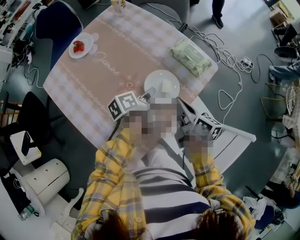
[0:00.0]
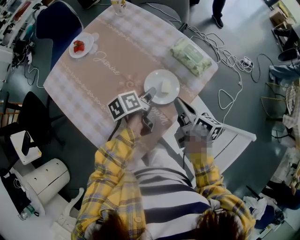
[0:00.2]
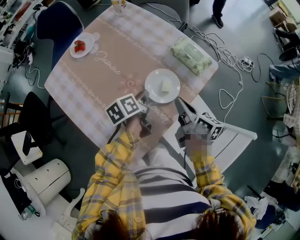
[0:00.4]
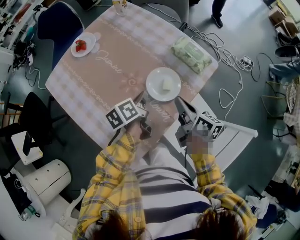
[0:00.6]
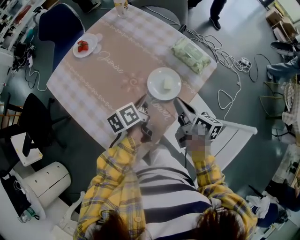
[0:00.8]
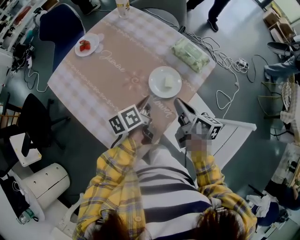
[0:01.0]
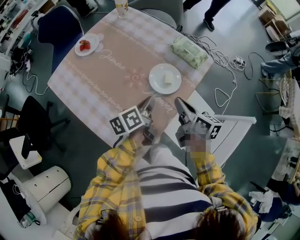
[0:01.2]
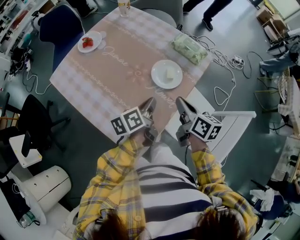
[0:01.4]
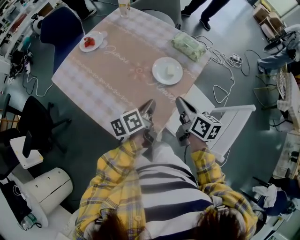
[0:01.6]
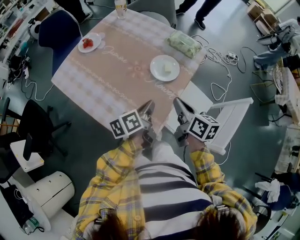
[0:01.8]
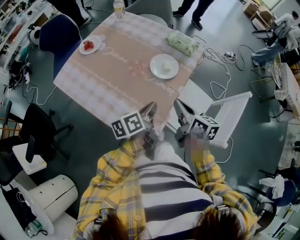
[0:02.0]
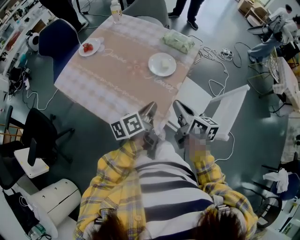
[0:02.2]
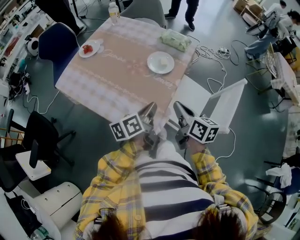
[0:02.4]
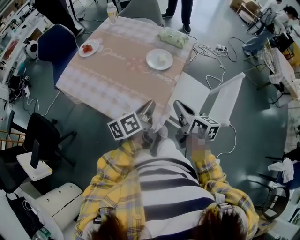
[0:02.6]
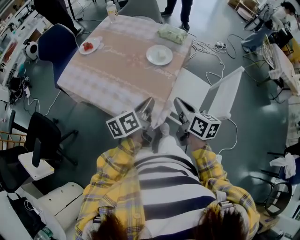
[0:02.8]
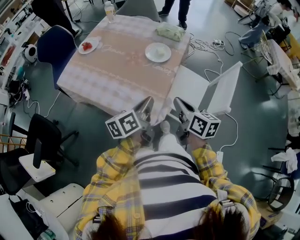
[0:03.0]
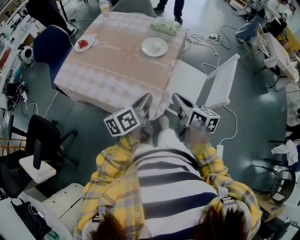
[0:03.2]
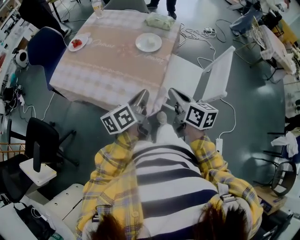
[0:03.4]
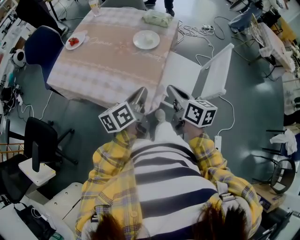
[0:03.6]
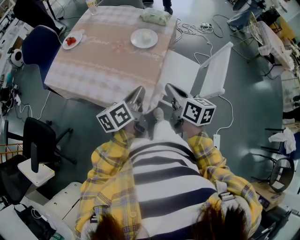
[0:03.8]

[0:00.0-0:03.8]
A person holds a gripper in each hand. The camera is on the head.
0:00.0 to 0:01.2: The right gripper shifts by about 5 cm.
0:01.2 to 0:02.6: The right gripper ends up about 20 cm from where it was.

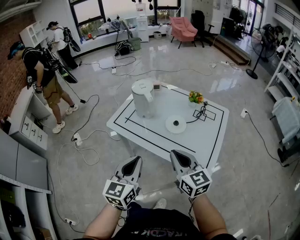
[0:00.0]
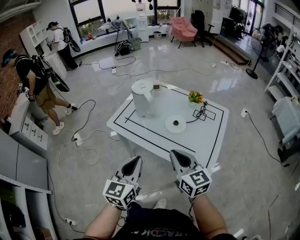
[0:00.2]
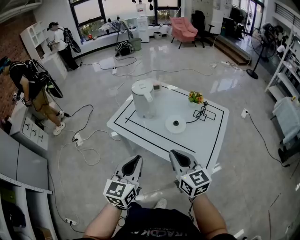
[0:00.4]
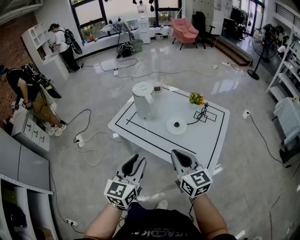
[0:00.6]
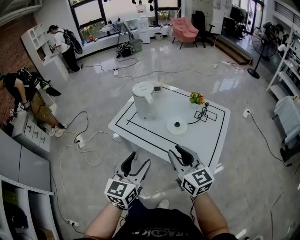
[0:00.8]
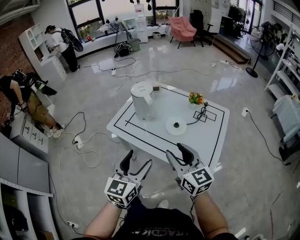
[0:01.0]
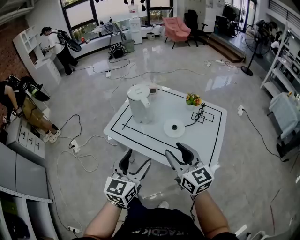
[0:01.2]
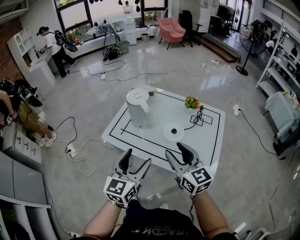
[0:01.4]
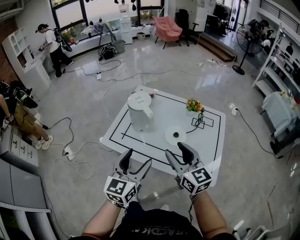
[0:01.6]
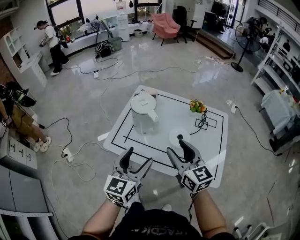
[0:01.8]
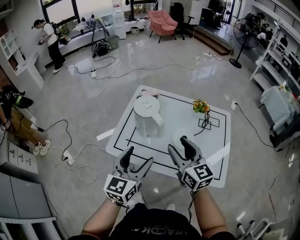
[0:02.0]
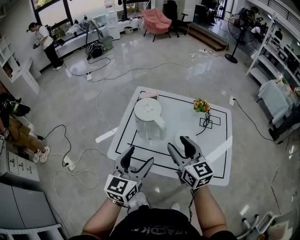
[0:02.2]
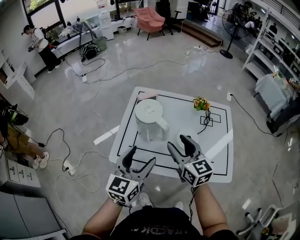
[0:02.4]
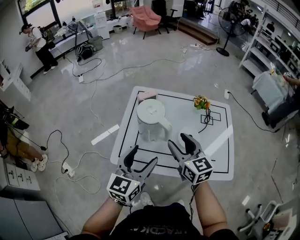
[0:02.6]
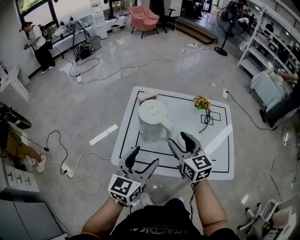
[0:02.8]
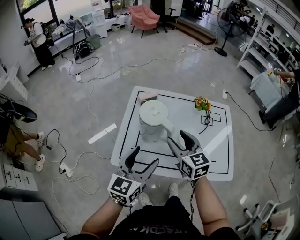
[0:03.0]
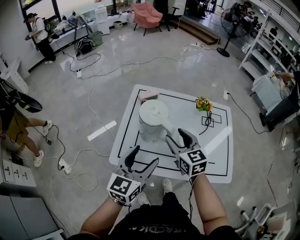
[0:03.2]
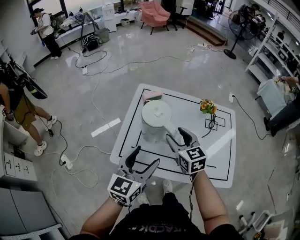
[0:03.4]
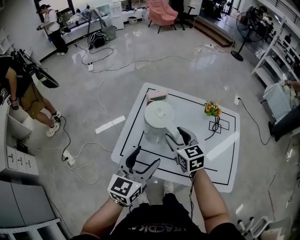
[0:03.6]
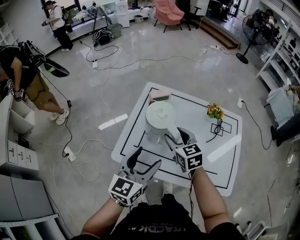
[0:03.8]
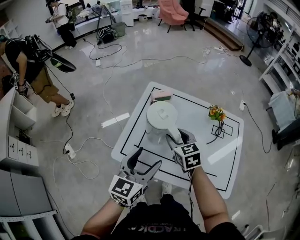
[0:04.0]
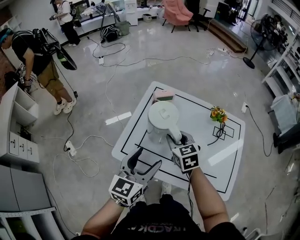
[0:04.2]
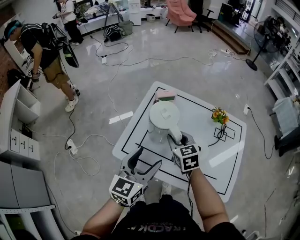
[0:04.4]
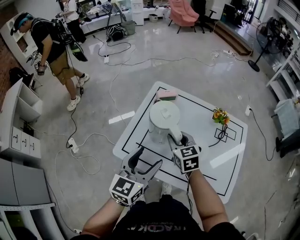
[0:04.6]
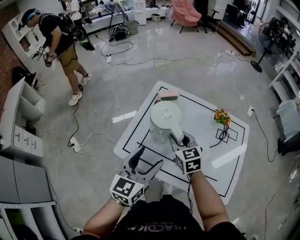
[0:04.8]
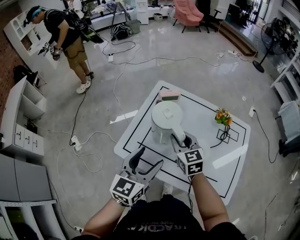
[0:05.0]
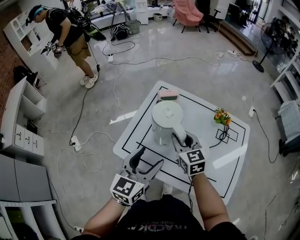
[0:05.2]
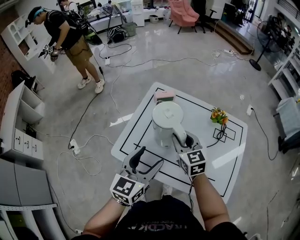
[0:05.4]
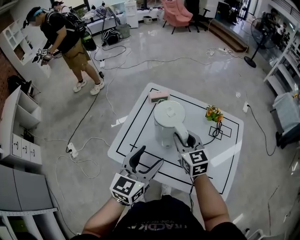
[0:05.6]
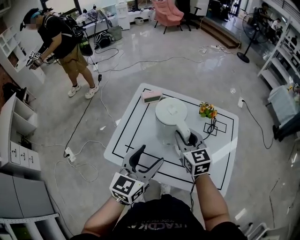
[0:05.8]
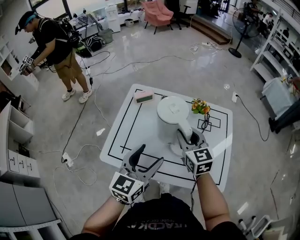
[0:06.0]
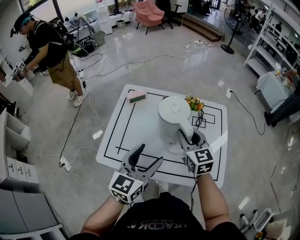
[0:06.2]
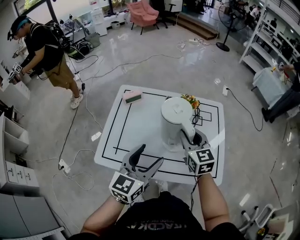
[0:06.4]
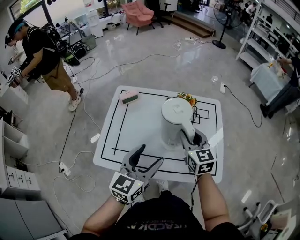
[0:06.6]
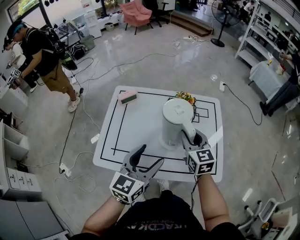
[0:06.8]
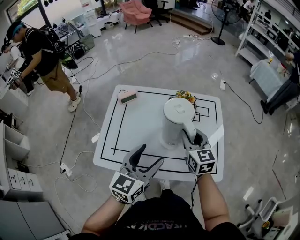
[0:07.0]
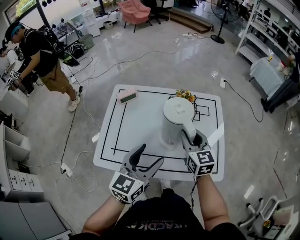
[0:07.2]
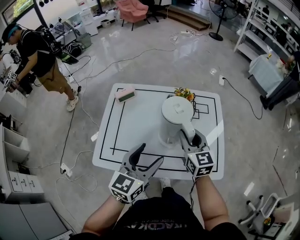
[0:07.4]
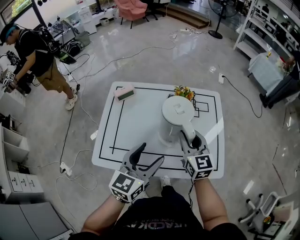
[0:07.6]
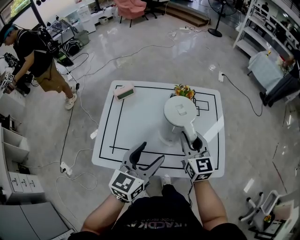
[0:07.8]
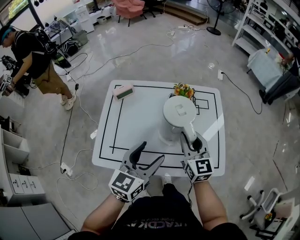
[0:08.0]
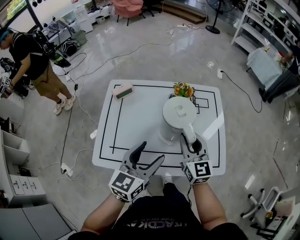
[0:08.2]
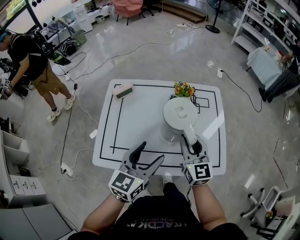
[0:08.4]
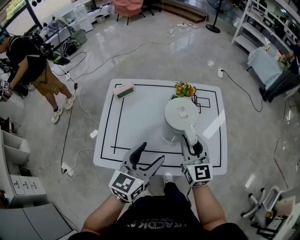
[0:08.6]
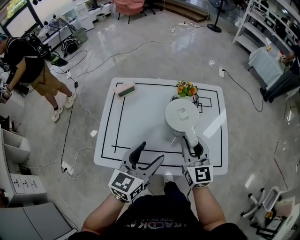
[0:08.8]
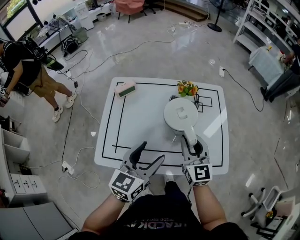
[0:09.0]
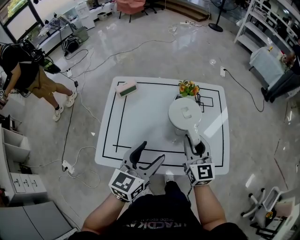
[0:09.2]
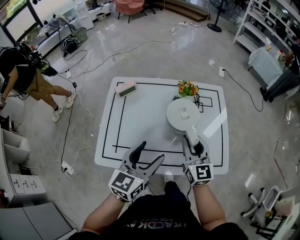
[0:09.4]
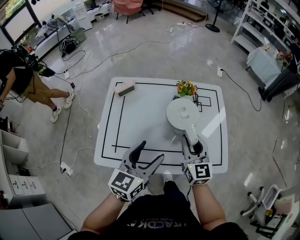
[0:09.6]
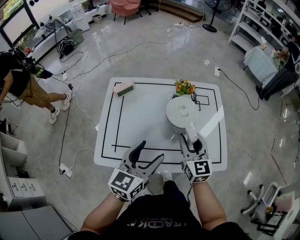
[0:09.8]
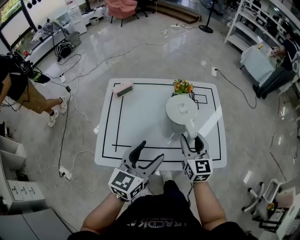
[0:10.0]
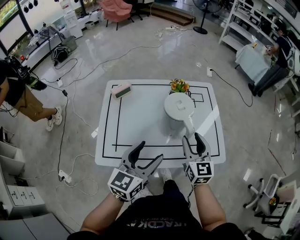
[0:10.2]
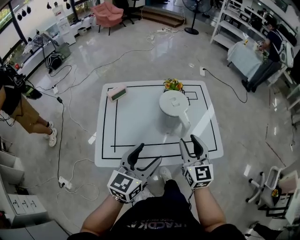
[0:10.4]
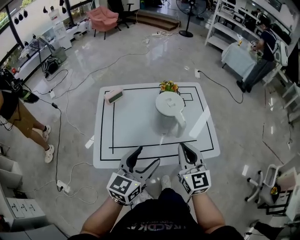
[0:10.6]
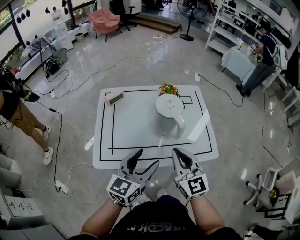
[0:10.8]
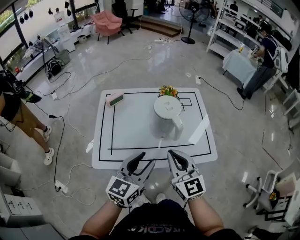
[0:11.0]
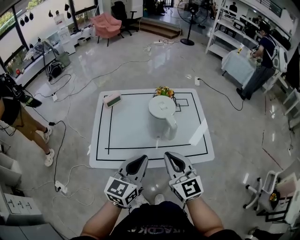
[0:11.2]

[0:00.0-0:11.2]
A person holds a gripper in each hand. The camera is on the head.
0:00.0 to 0:01.6: The two grippers go roughly 10 cm forward. The left gripper opens; the right gripper opens up.
0:01.6 to 0:03.2: The two grippers go about 20 cm forward and to the left.
0:03.2 to 0:04.8: The right gripper shifts approximately 5 cm downward, and closes its fingers.
0:04.8 to 0:06.4: The right gripper shifts approximately 20 cm to the right, and turns by about 20 degrees. The left gripper travels to the right by about 10 cm.
0:06.4 to 0:09.6: The grippers stay close to where they were, moving slightly.
0:09.6 to 0:11.2: The left gripper heads backward, covering some 10 cm, and closes up. The right gripper travels backward and upward by roughly 20 cm, and closes up.

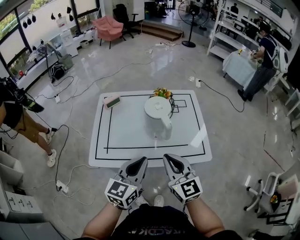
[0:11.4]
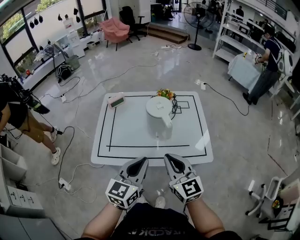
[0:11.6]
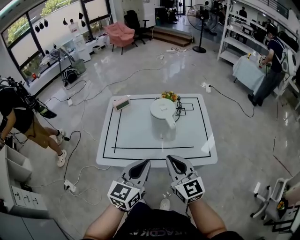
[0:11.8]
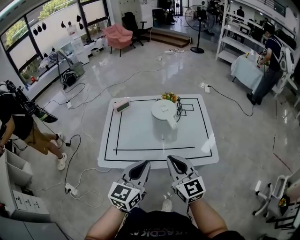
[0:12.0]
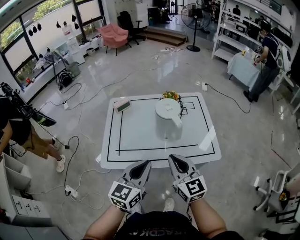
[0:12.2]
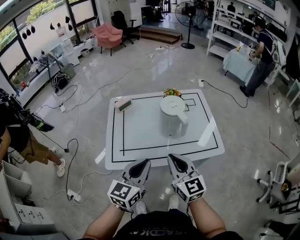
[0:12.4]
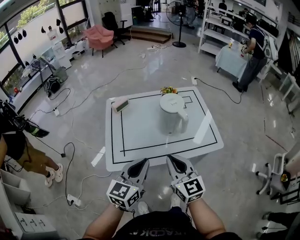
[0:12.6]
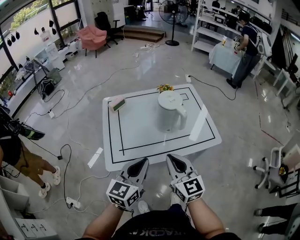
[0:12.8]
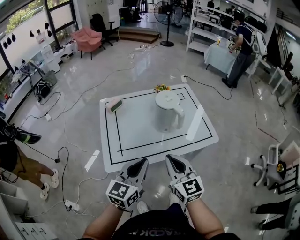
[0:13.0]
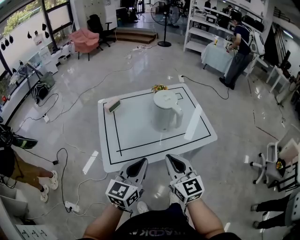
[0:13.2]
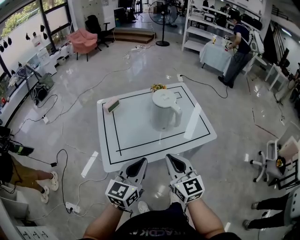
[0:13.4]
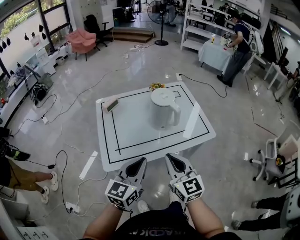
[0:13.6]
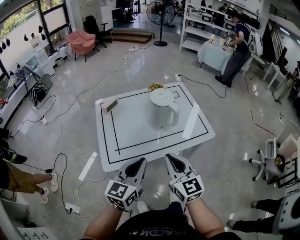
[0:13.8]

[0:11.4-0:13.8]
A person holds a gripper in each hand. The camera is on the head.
0:11.4 to 0:12.6: The grippers both shift to the left by approximately 10 cm.
0:12.6 to 0:13.8: The grippers move only a little.

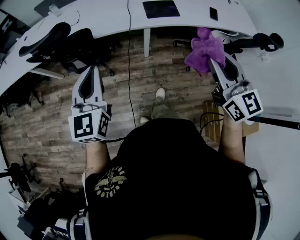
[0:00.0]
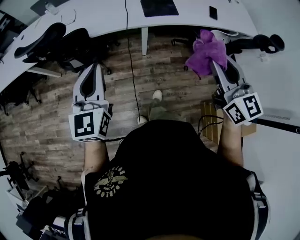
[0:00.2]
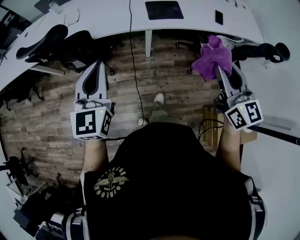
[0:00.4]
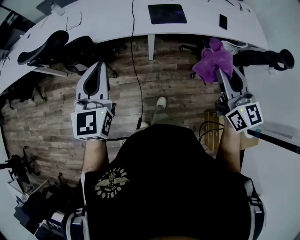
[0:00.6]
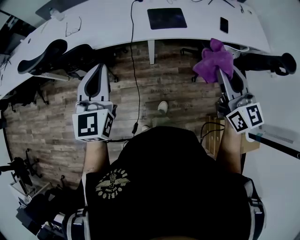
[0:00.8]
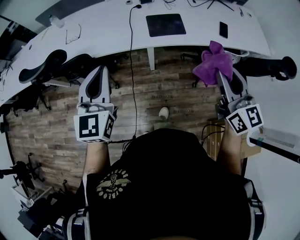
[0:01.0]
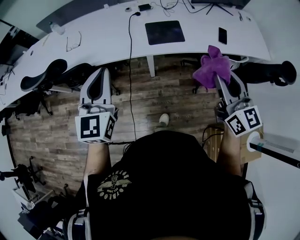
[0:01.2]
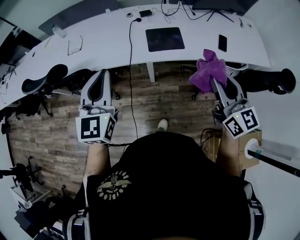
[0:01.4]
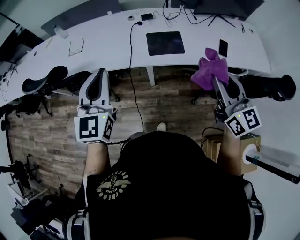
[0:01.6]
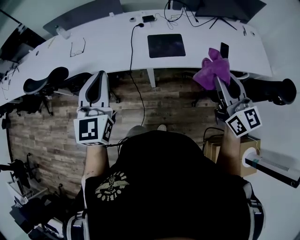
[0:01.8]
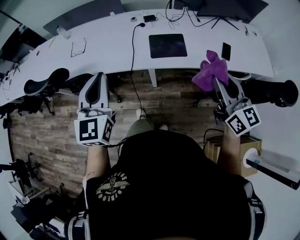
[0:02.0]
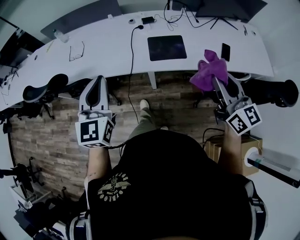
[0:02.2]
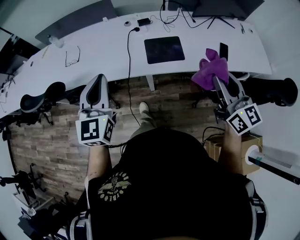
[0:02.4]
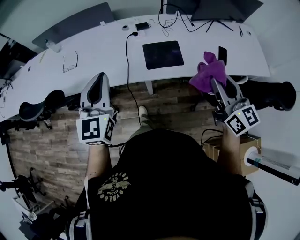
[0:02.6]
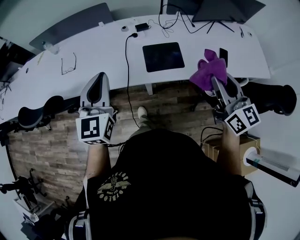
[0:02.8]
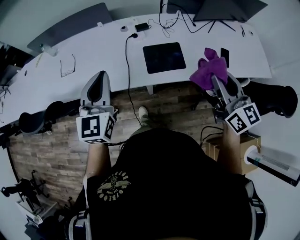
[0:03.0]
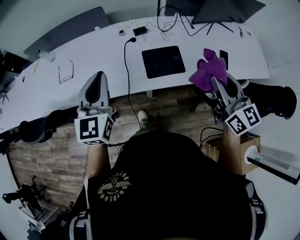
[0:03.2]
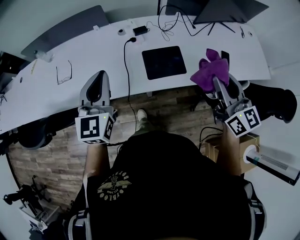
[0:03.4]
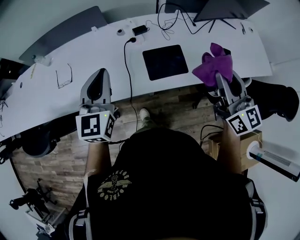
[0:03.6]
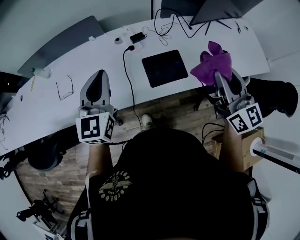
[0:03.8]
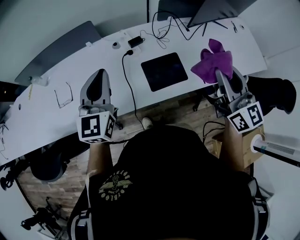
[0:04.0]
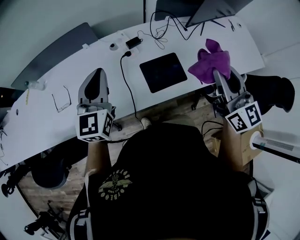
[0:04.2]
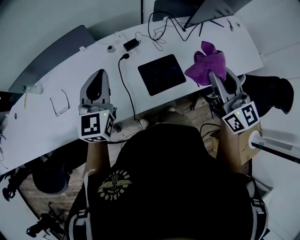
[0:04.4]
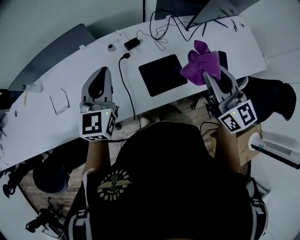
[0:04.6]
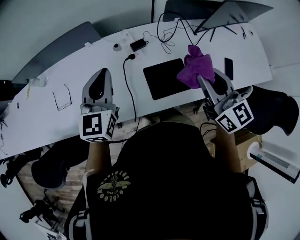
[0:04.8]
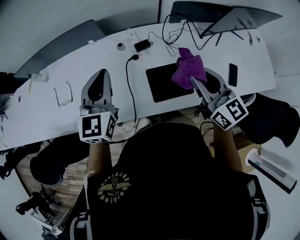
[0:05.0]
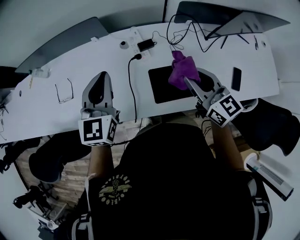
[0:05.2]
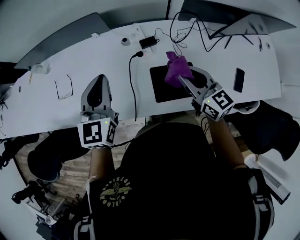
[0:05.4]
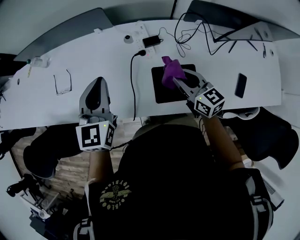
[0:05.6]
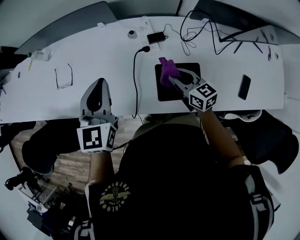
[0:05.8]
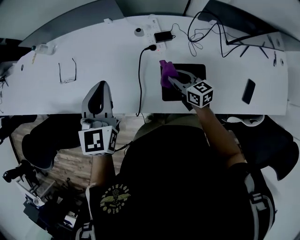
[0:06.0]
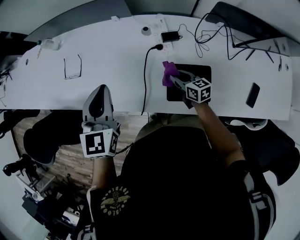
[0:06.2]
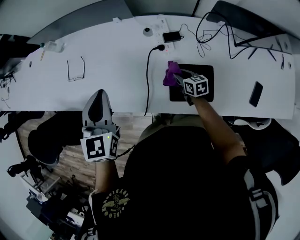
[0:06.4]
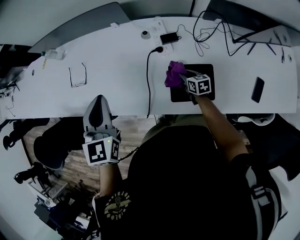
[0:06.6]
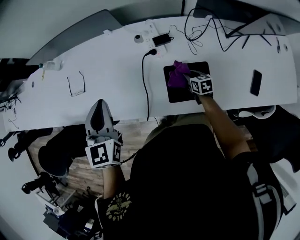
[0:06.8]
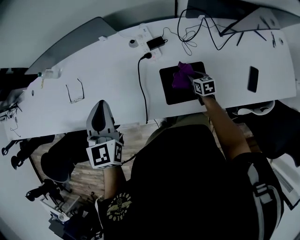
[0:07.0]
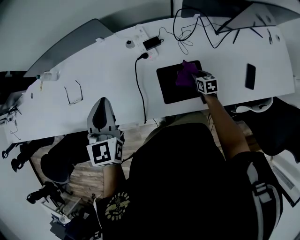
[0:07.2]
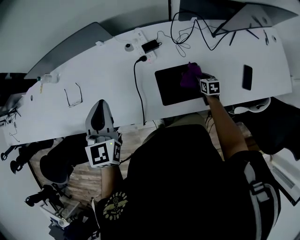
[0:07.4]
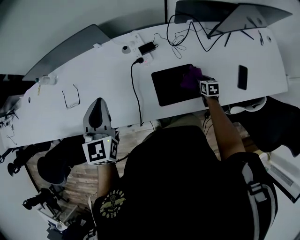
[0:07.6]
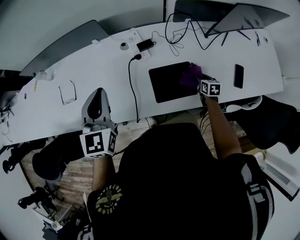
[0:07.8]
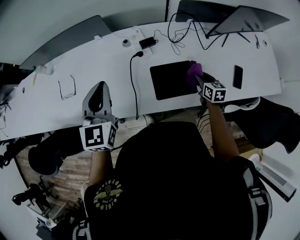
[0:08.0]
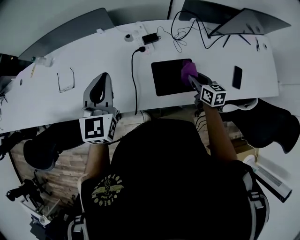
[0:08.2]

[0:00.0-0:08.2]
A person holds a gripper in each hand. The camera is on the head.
0:00.0 to 0:01.6: The two grippers go about 25 cm forward and to the right.
0:01.6 to 0:03.2: Both grippers travel together forward, about 20 cm.
0:03.2 to 0:05.0: The grippers both shift forward by roughly 20 cm.
0:05.0 to 0:06.6: The left gripper heads to the left, covering approximately 10 cm, and changes its angle by some 20 degrees; the right gripper goes approximately 40 cm downward, and tips its fingers downward by roughly 40 degrees.
0:06.6 to 0:08.2: The left gripper moves to the right, some 5 cm. Meanwhile the right gripper shifts about 20 cm upward, to the right and backward.
